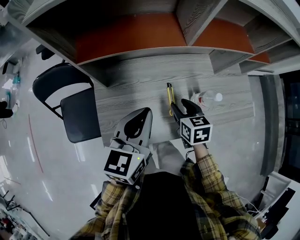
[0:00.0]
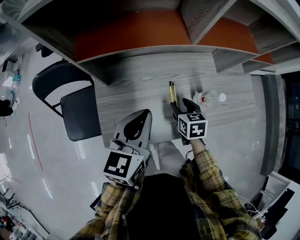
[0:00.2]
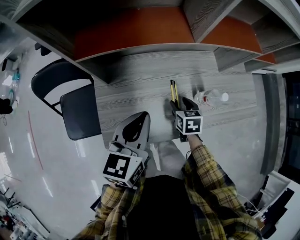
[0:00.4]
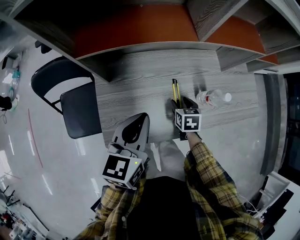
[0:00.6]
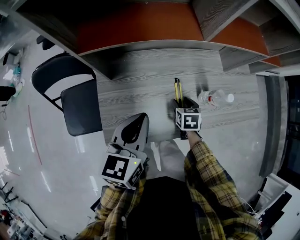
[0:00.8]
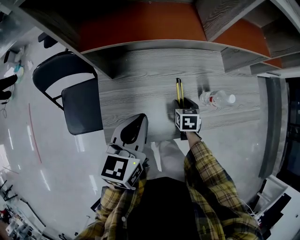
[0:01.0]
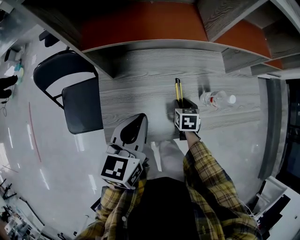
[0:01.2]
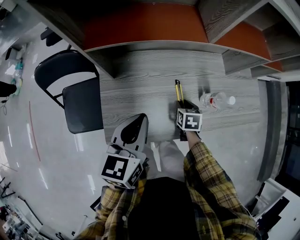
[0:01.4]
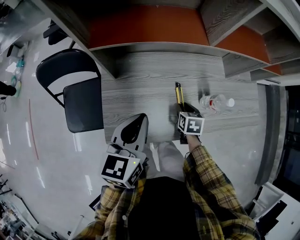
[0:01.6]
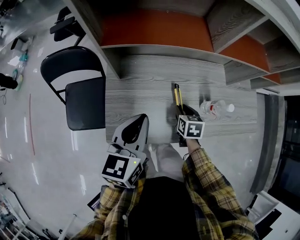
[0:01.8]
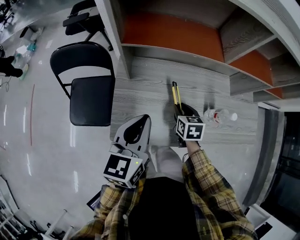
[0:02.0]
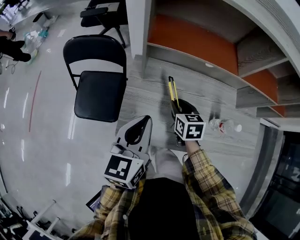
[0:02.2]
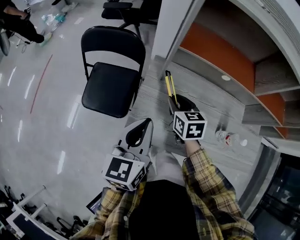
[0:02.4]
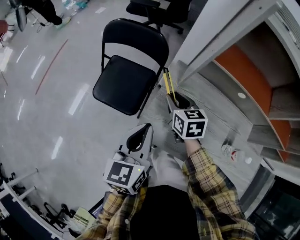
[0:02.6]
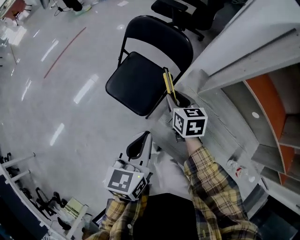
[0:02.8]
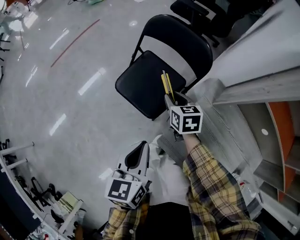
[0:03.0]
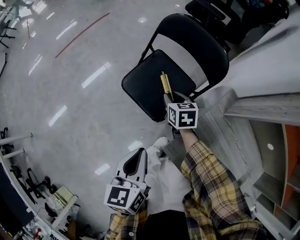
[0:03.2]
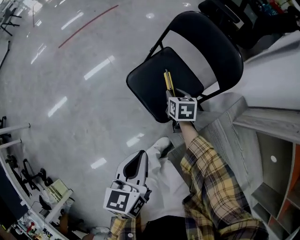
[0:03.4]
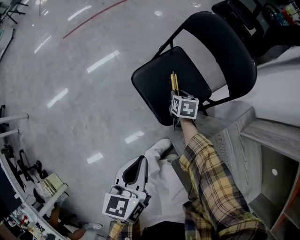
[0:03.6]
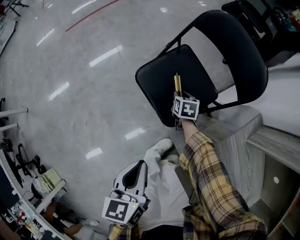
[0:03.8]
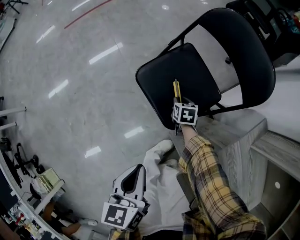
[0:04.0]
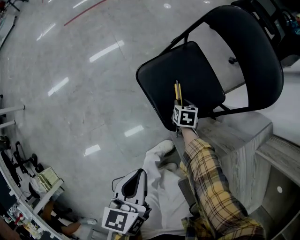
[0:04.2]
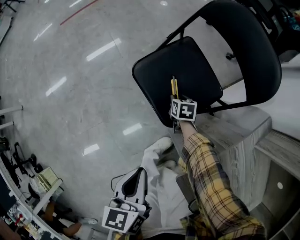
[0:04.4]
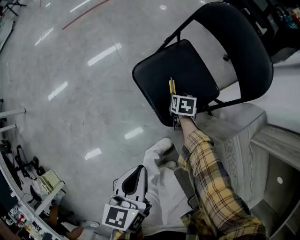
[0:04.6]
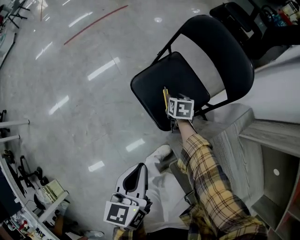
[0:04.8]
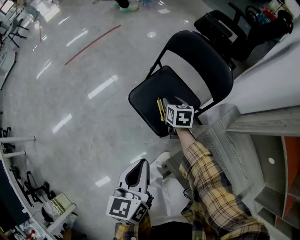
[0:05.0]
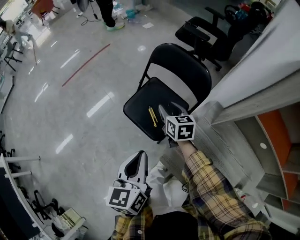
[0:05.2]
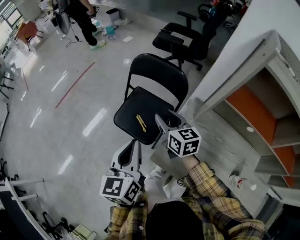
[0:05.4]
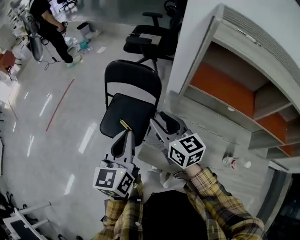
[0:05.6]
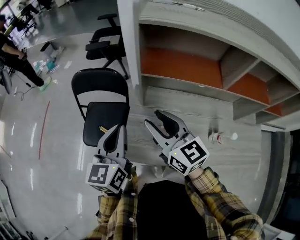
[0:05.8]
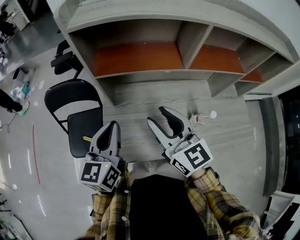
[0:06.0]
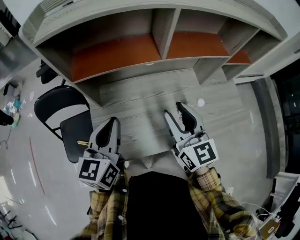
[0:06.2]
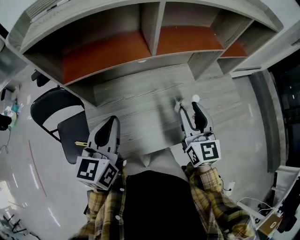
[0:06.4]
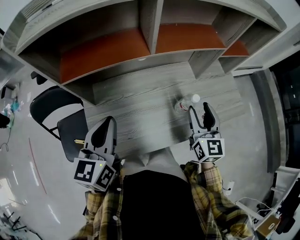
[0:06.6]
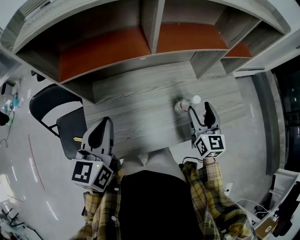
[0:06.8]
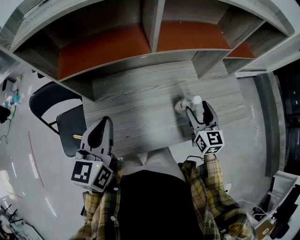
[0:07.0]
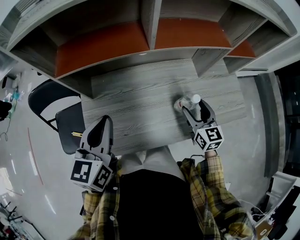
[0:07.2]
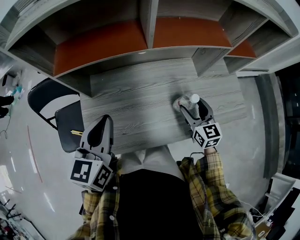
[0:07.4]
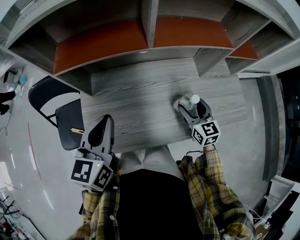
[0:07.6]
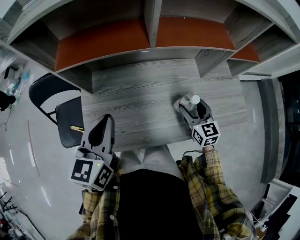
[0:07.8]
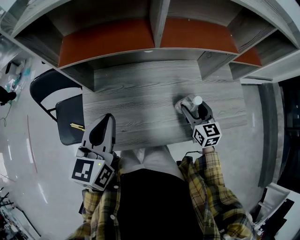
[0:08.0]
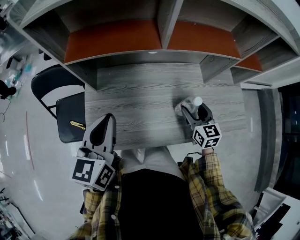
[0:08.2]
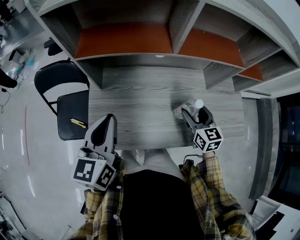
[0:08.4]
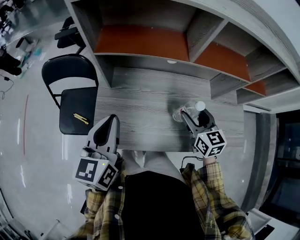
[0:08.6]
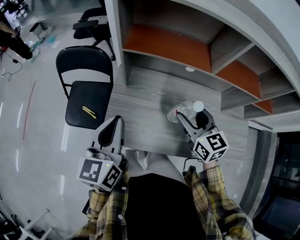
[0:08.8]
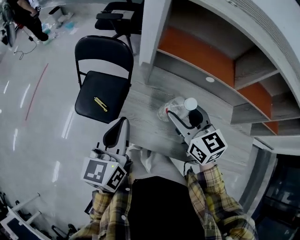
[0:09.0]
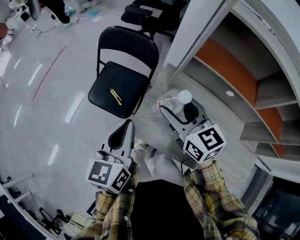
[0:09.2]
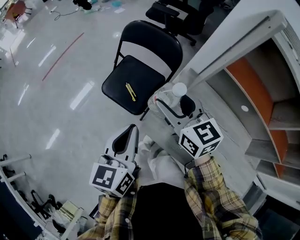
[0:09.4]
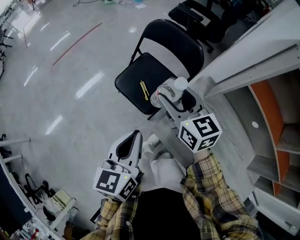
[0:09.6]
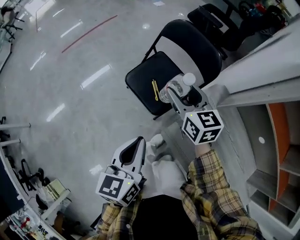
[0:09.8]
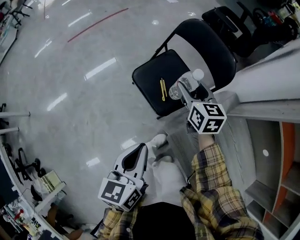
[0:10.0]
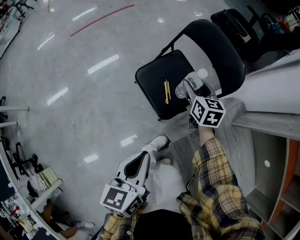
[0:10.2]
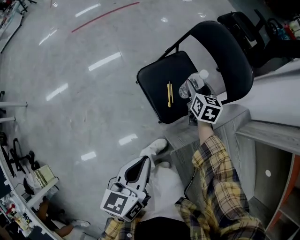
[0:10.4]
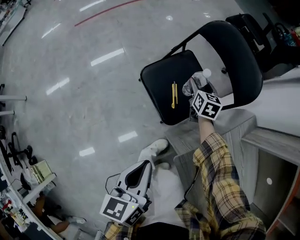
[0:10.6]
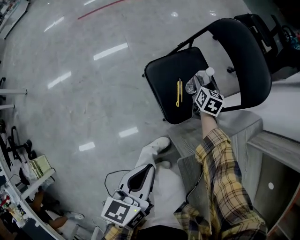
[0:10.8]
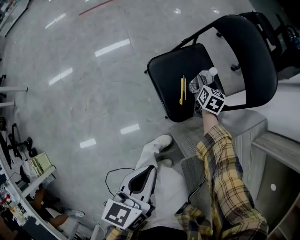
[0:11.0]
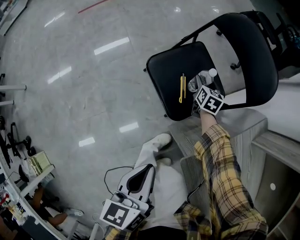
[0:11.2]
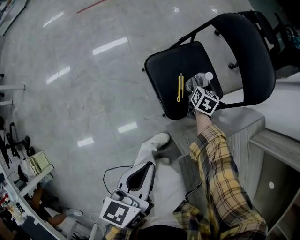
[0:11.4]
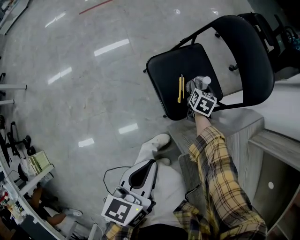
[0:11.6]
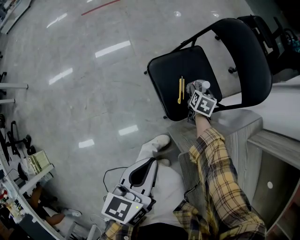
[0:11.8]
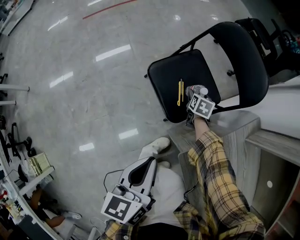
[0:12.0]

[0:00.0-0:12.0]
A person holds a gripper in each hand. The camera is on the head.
0:00.0 to 0:01.6: The left gripper shifts by some 5 cm; the right gripper shifts some 10 cm downward.
0:01.6 to 0:03.0: The left gripper ends up approximately 30 cm from where it was, and swivels roughly 60 degrees. Meanwhile the right gripper goes upward and returns, roughly 15 cm each way, and changes its angle by roughly 60 degrees.
0:03.0 to 0:04.4: The right gripper travels downward by roughly 35 cm, and swivels approximately 20 degrees; the left gripper shifts roughly 20 cm downward and to the left, and changes its angle by some 20 degrees.
0:04.4 to 0:06.0: The left gripper ends up some 40 cm from where it was, and rotates about 70 degrees; the right gripper goes some 60 cm upward, and tips its fingers upward by some 60 degrees.
0:06.0 to 0:07.6: The right gripper moves approximately 35 cm, rotates some 20 degrees, and opens up; the left gripper changes place by some 10 cm.
0:07.6 to 0:09.0: The right gripper changes place by about 35 cm, and rotates approximately 40 degrees. Meanwhile the left gripper ends up roughly 20 cm from where it was, and changes its angle by about 30 degrees.
0:09.0 to 0:10.4: The right gripper ends up some 50 cm from where it was, and swivels approximately 20 degrees; the left gripper shifts by approximately 30 cm, and rotates about 50 degrees.
0:10.4 to 0:12.0: The right gripper goes some 15 cm downward, and rotates some 20 degrees.

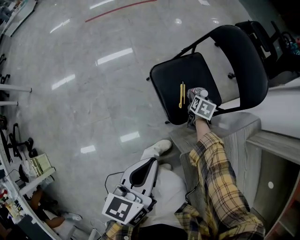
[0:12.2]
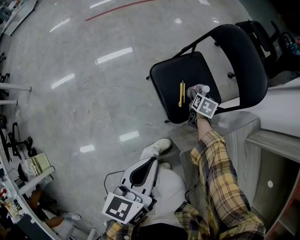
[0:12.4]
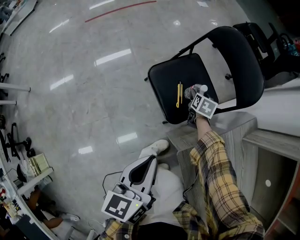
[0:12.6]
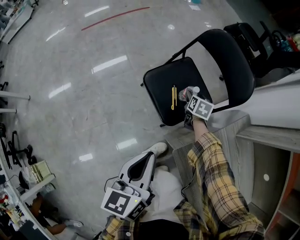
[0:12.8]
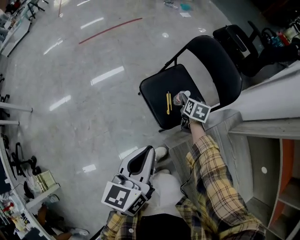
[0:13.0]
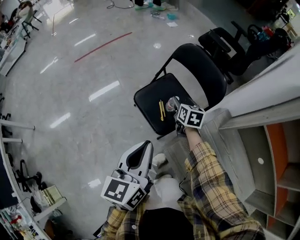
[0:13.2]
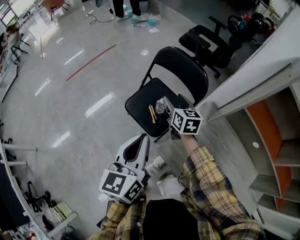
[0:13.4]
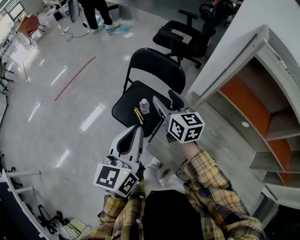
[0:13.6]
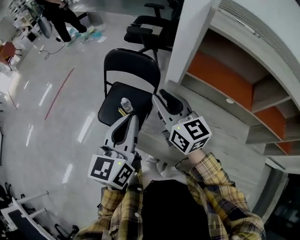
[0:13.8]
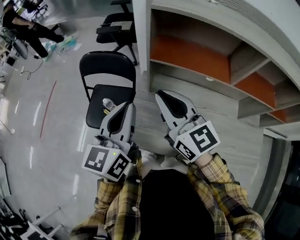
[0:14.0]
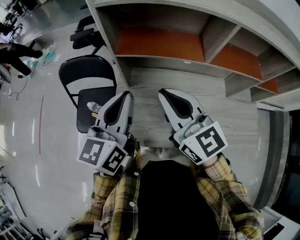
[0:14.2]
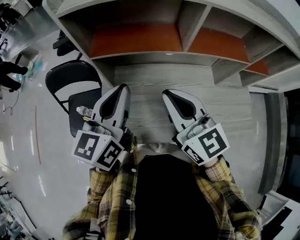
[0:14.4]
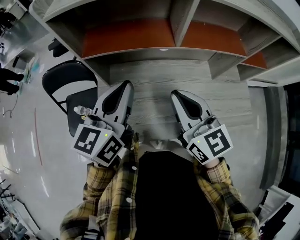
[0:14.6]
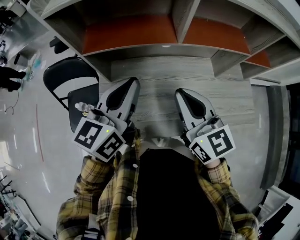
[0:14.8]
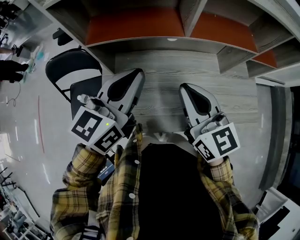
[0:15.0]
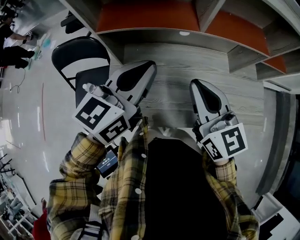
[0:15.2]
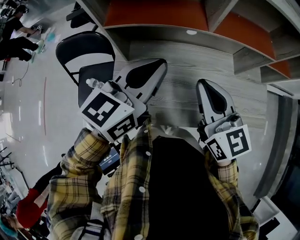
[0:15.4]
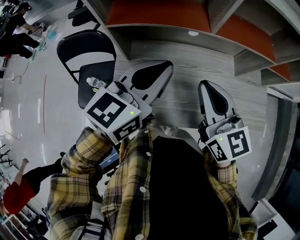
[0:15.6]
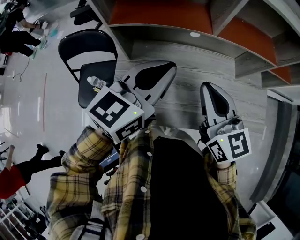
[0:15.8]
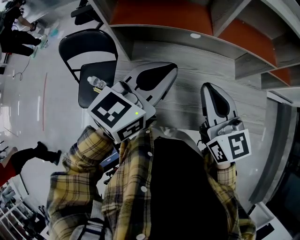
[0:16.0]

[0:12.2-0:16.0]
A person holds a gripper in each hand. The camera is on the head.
0:12.2 to 0:13.4: The left gripper shifts about 20 cm upward, and turns by approximately 30 degrees. Meanwhile the right gripper travels upward by about 35 cm, and points its fingers about 30 degrees further upward.
0:13.4 to 0:14.8: The left gripper changes place by roughly 35 cm, and swivels some 60 degrees. The right gripper changes place by approximately 50 cm, changes its angle by roughly 40 degrees, and closes its fingers.
0:14.8 to 0:16.0: The grippers stay close to where they were, moving slightly.

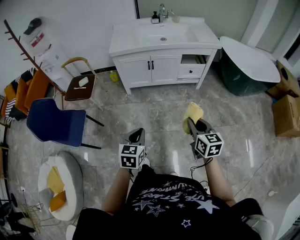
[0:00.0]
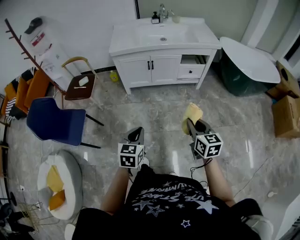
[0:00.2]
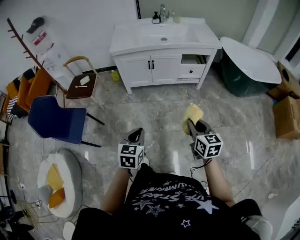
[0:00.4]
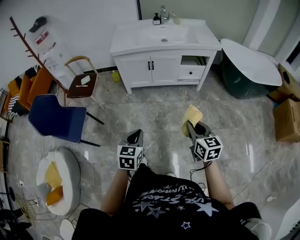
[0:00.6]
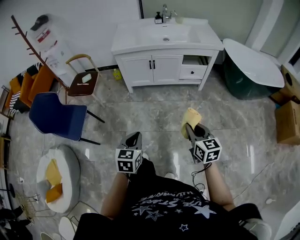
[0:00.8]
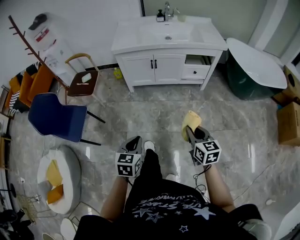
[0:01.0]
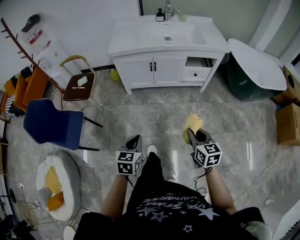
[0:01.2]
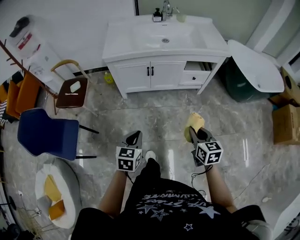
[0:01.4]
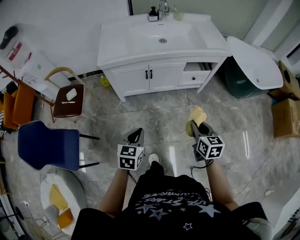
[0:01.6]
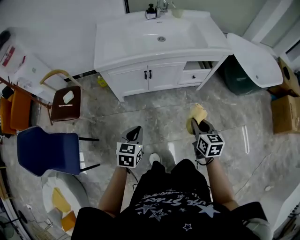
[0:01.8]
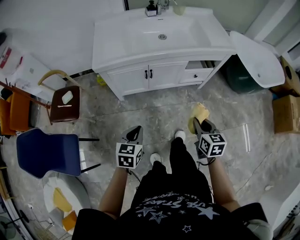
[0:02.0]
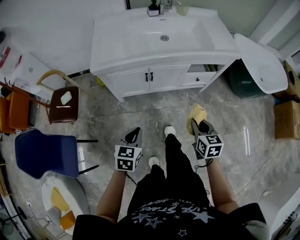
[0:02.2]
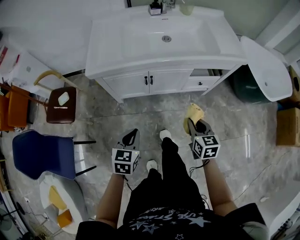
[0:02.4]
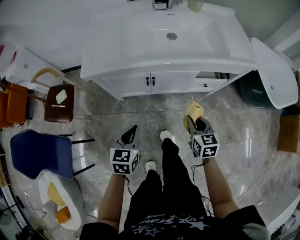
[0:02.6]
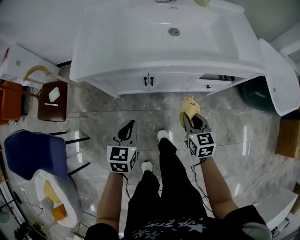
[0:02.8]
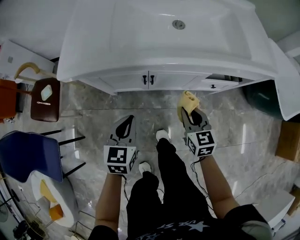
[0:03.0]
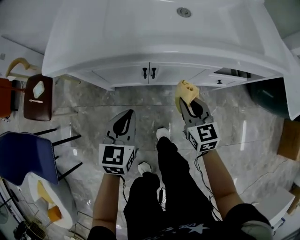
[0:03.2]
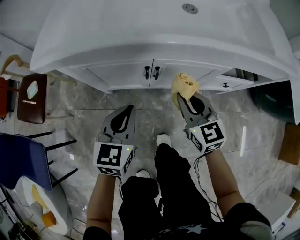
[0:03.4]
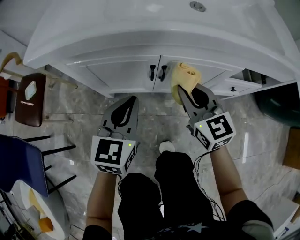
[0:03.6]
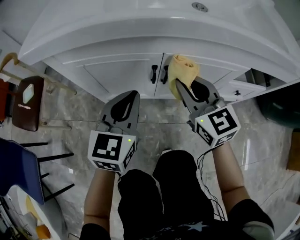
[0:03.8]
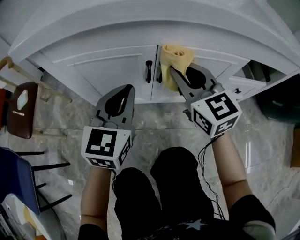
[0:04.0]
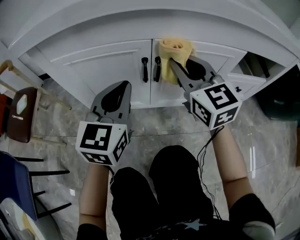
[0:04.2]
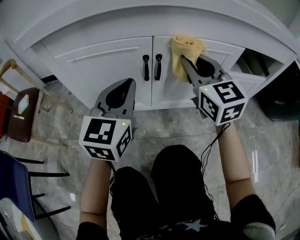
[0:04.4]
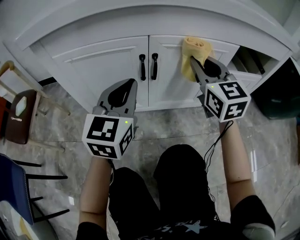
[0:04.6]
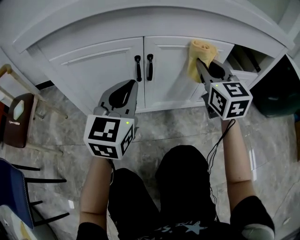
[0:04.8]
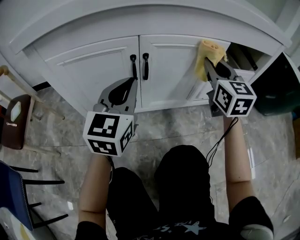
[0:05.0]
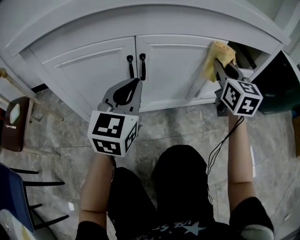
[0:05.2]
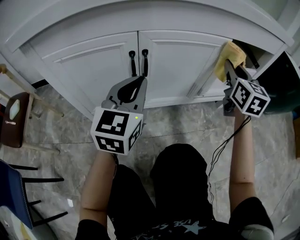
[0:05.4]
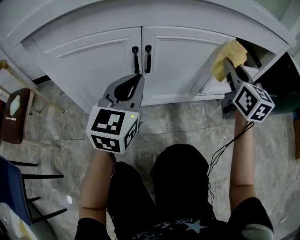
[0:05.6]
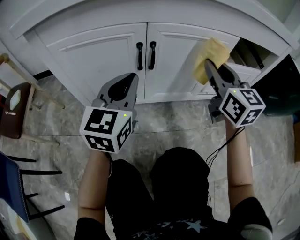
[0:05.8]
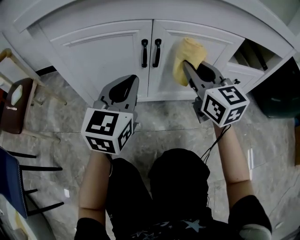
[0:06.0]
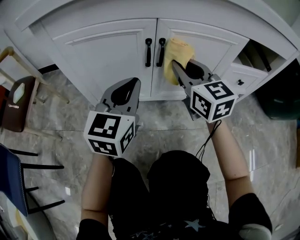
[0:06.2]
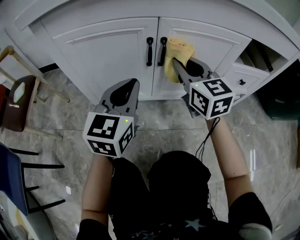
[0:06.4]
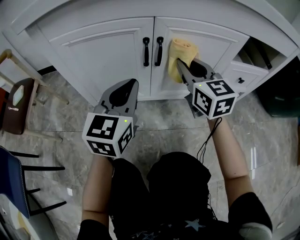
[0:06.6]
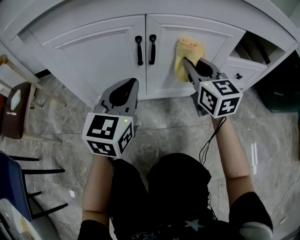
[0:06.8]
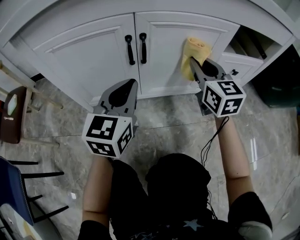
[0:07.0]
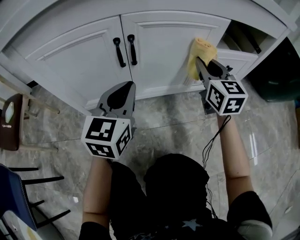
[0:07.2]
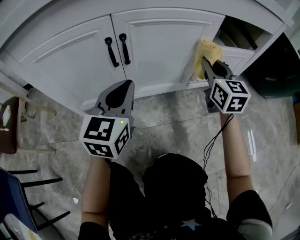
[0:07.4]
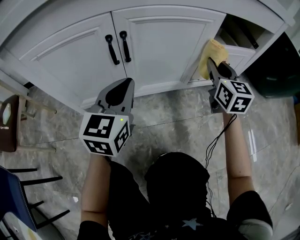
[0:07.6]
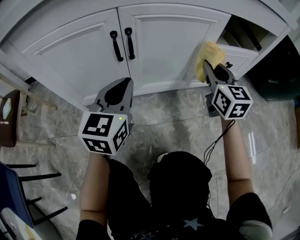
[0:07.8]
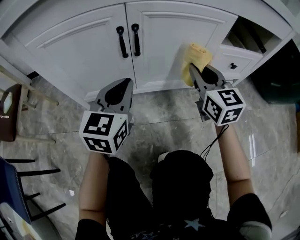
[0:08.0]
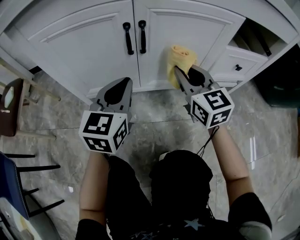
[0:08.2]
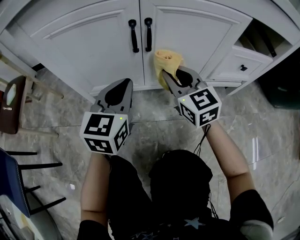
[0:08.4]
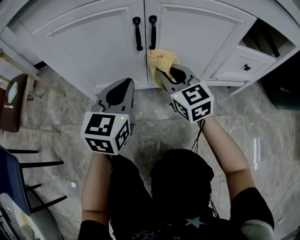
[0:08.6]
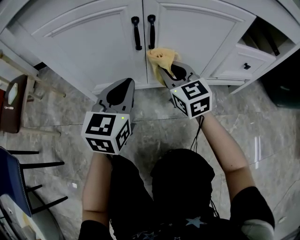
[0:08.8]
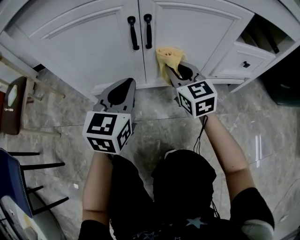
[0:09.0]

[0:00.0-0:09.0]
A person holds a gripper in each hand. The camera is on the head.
0:00.0 to 0:01.6: The two grippers go roughly 25 cm forward.
0:01.6 to 0:03.0: The two grippers go about 35 cm forward and downward.
0:03.0 to 0:04.4: The left gripper moves downward and forward, about 15 cm, and rotates approximately 30 degrees; the right gripper heads forward and downward, covering roughly 15 cm, and rotates some 30 degrees.
0:04.4 to 0:06.0: The right gripper goes to the right and returns, some 20 cm each way.
0:06.0 to 0:07.6: The right gripper goes about 20 cm to the right, and changes its angle by approximately 20 degrees, while the left gripper moves to the right, some 5 cm.
0:07.6 to 0:09.0: The left gripper travels to the left by about 5 cm, while the right gripper goes some 20 cm to the left, and changes its angle by about 30 degrees.
